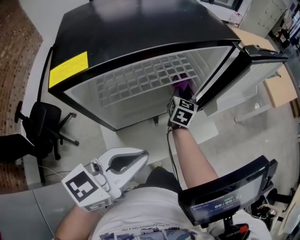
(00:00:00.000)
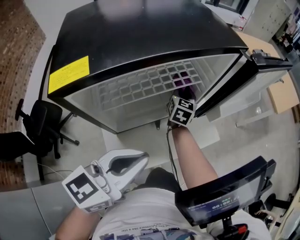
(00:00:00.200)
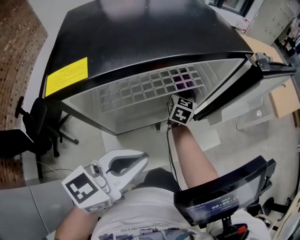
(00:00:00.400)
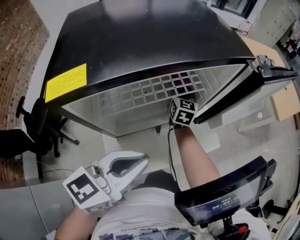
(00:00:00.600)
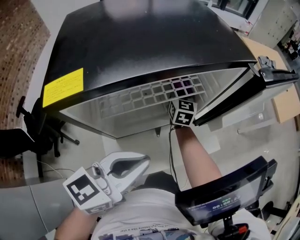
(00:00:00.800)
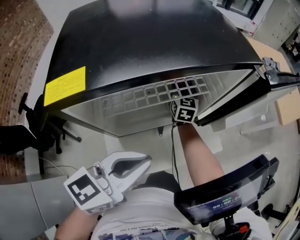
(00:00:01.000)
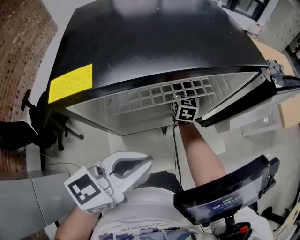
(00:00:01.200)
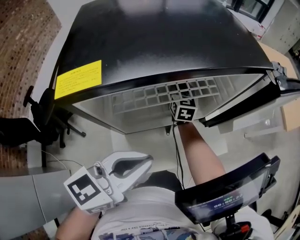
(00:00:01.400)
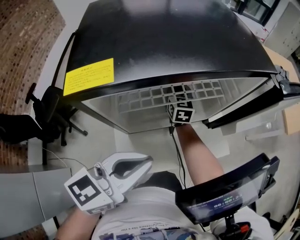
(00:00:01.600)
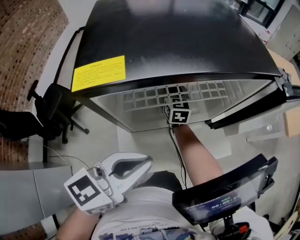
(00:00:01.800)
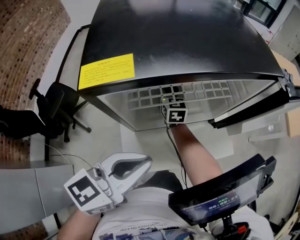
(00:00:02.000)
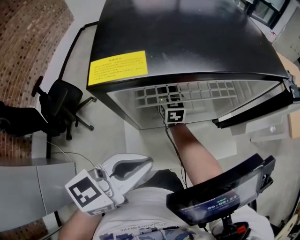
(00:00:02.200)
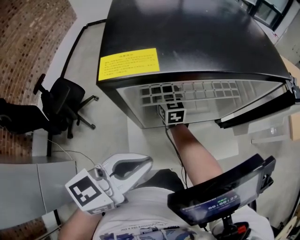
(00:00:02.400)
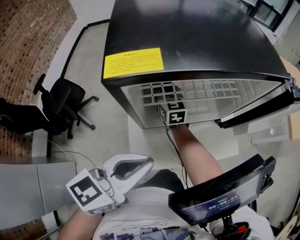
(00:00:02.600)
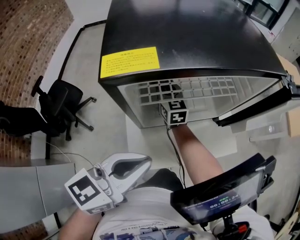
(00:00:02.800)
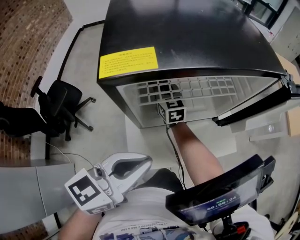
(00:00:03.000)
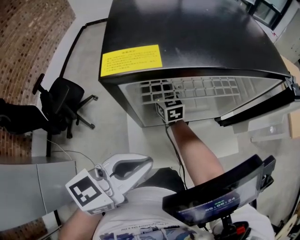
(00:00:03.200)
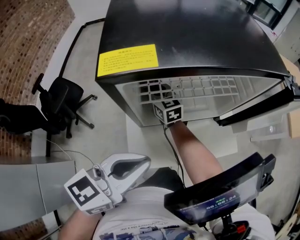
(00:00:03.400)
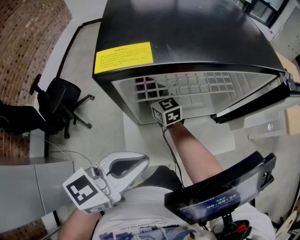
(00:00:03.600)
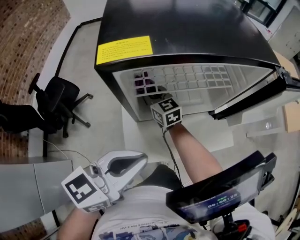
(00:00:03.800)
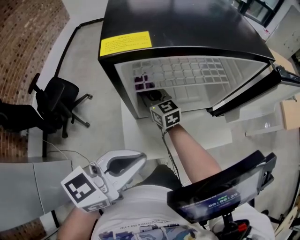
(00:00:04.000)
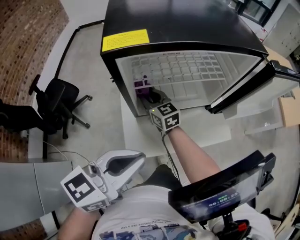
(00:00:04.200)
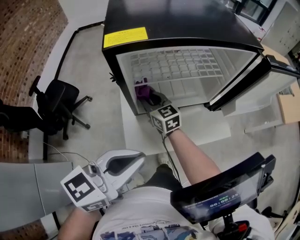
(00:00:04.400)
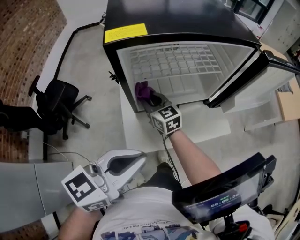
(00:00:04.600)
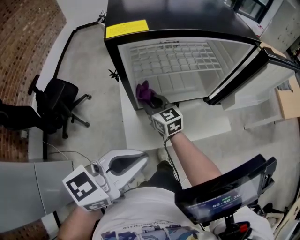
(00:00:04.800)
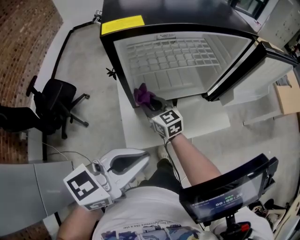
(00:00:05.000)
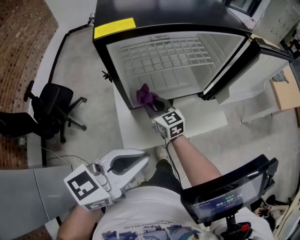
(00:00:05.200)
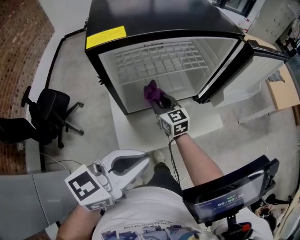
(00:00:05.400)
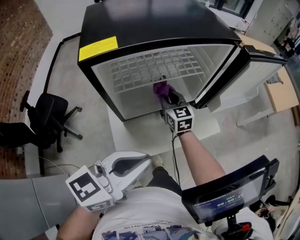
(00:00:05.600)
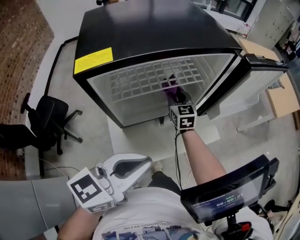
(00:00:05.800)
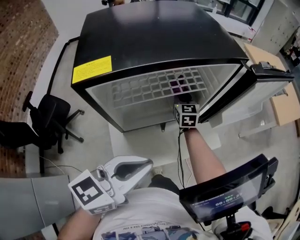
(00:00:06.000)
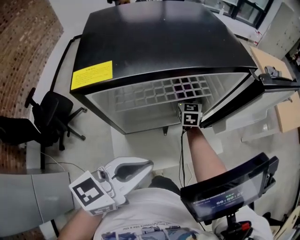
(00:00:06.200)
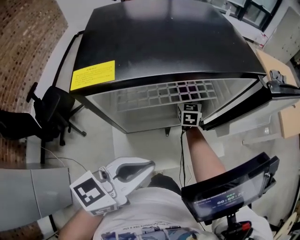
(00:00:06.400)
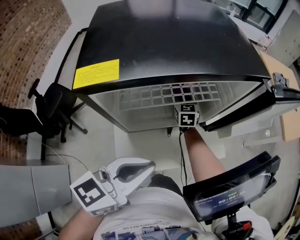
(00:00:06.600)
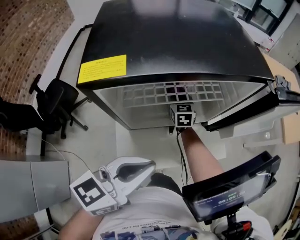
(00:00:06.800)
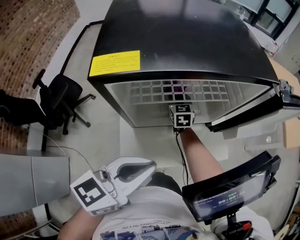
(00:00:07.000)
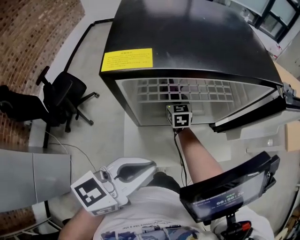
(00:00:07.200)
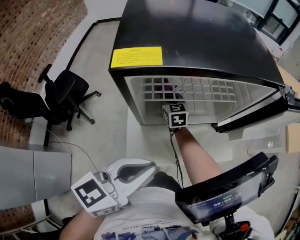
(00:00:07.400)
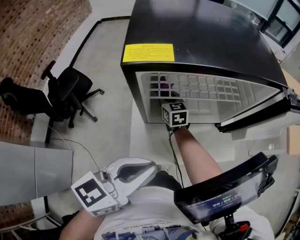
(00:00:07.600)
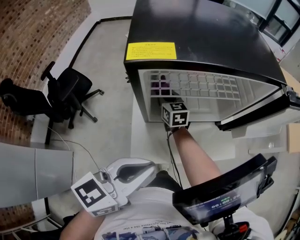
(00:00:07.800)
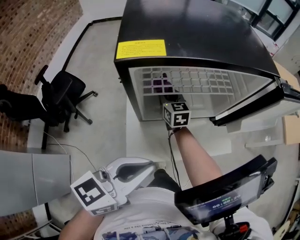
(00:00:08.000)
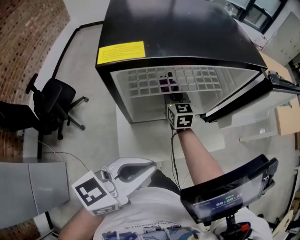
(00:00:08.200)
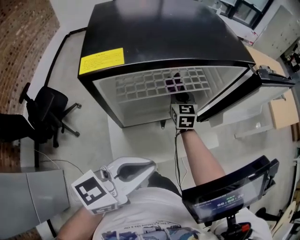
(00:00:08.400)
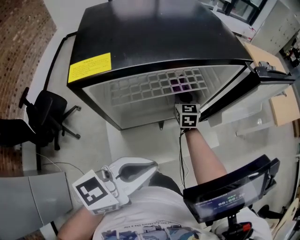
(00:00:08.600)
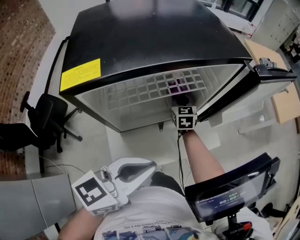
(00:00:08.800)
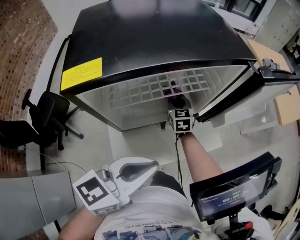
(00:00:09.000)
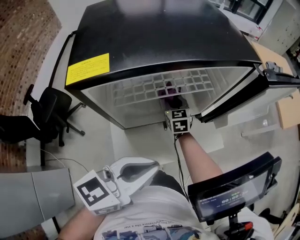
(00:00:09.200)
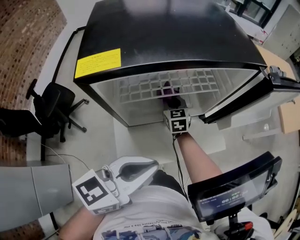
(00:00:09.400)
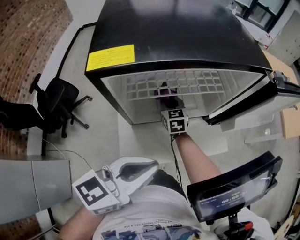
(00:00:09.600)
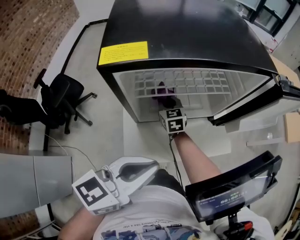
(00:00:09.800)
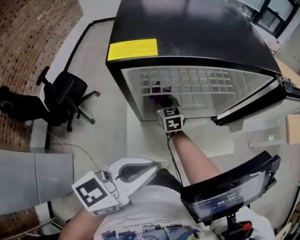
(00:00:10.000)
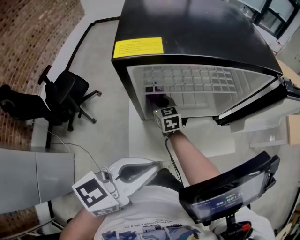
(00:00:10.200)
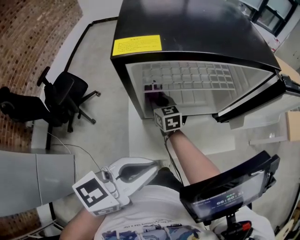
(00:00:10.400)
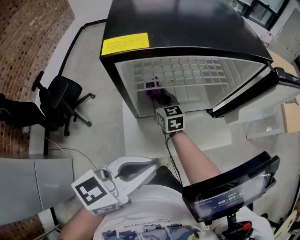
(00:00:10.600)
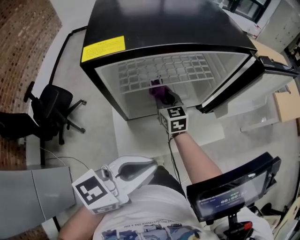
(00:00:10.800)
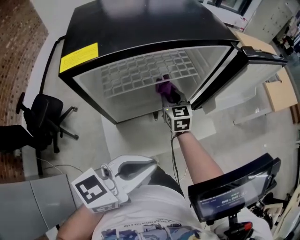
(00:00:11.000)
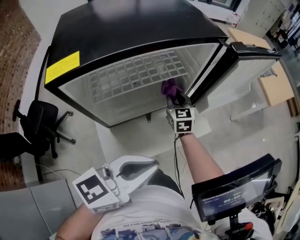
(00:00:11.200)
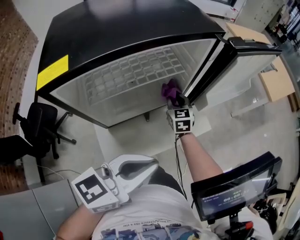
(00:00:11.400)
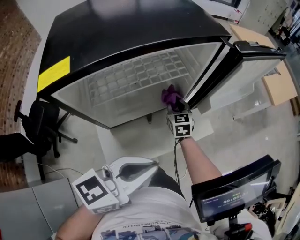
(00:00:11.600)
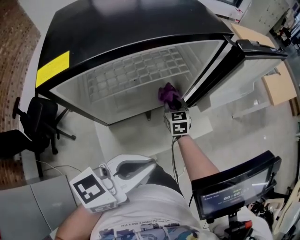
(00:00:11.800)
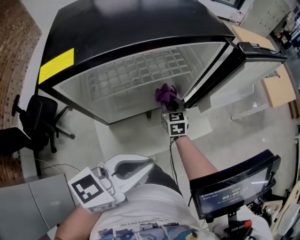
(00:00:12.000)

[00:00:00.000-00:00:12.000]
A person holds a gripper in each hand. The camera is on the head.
00:00:00.000 to 00:00:01.600: The right gripper moves to the left, roughly 15 cm, and swivels roughly 30 degrees.
00:00:01.600 to 00:00:03.000: The right gripper shifts some 15 cm to the left and backward; the left gripper changes place by some 5 cm.
00:00:03.000 to 00:00:04.400: The right gripper is displaced backward by approximately 10 cm, while the left gripper moves backward, roughly 5 cm.
00:00:04.400 to 00:00:06.000: The right gripper is displaced to the right and forward by about 25 cm, and changes its angle by some 40 degrees. Meanwhile the left gripper is displaced to the right and forward by roughly 10 cm.
00:00:06.000 to 00:00:07.600: The right gripper moves to the left and backward, roughly 25 cm, and rotates some 30 degrees. Meanwhile the left gripper shifts approximately 5 cm to the left.
00:00:07.600 to 00:00:09.000: The left gripper goes about 5 cm to the right. Meanwhile the right gripper heads to the right, covering some 20 cm, and turns by roughly 20 degrees.
00:00:09.000 to 00:00:10.400: The right gripper goes about 20 cm to the left and backward, and turns by some 20 degrees; the left gripper moves backward and to the left, approximately 10 cm.
00:00:10.400 to 00:00:12.000: The right gripper reaches about 5 cm upward, then returns, and swivels approximately 30 degrees, while the left gripper moves roughly 10 cm.

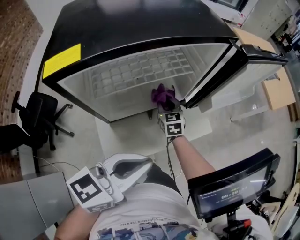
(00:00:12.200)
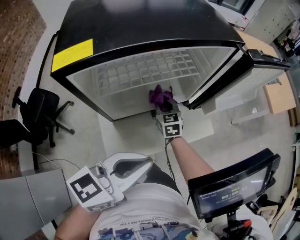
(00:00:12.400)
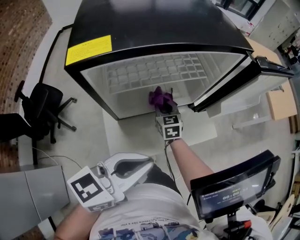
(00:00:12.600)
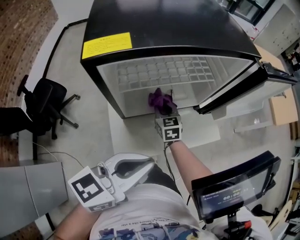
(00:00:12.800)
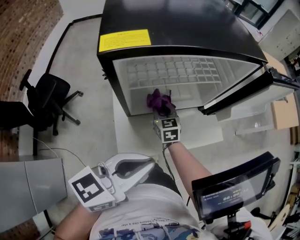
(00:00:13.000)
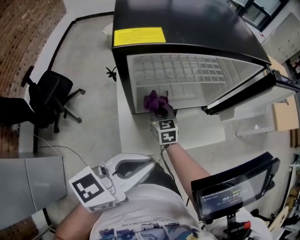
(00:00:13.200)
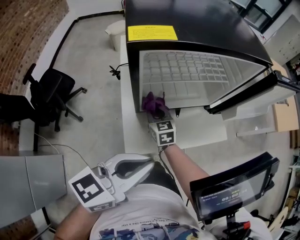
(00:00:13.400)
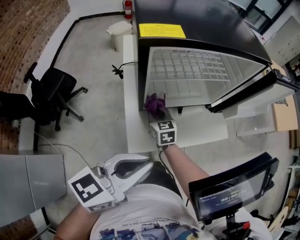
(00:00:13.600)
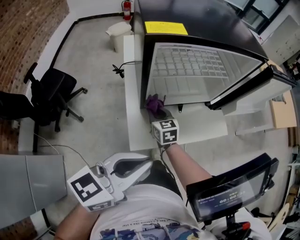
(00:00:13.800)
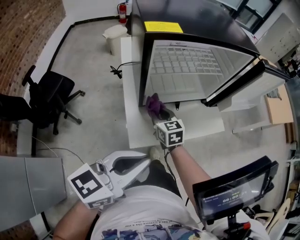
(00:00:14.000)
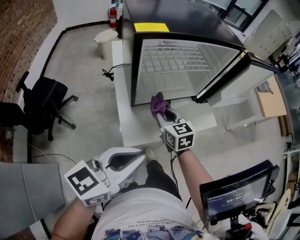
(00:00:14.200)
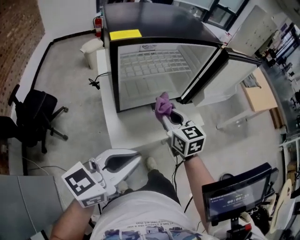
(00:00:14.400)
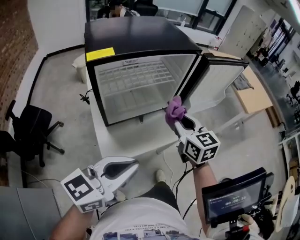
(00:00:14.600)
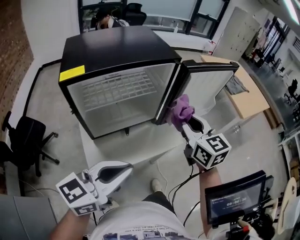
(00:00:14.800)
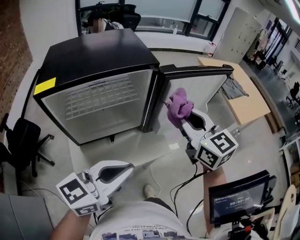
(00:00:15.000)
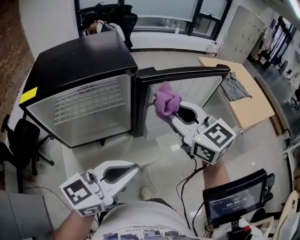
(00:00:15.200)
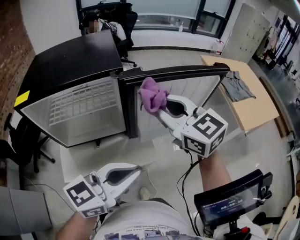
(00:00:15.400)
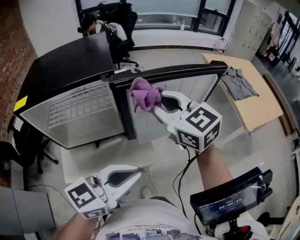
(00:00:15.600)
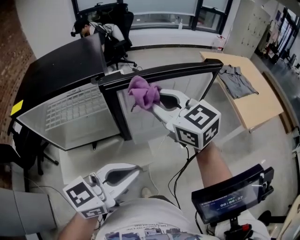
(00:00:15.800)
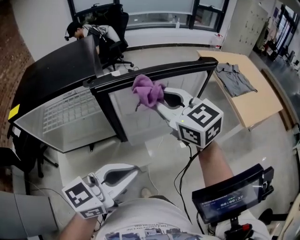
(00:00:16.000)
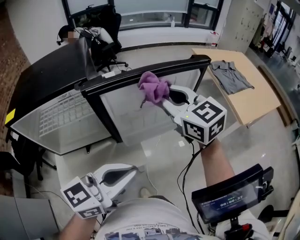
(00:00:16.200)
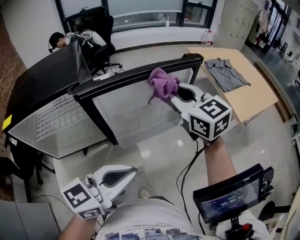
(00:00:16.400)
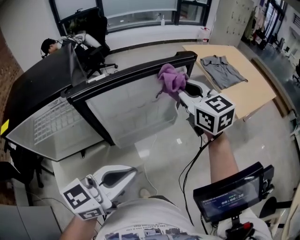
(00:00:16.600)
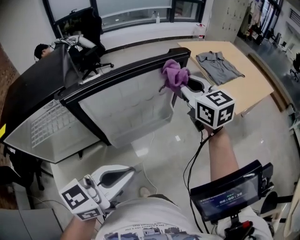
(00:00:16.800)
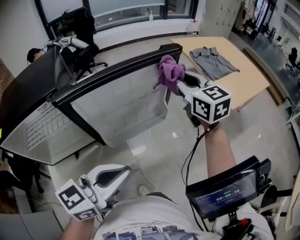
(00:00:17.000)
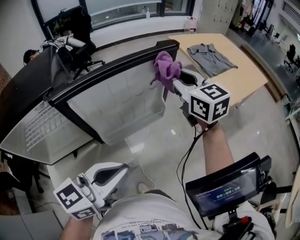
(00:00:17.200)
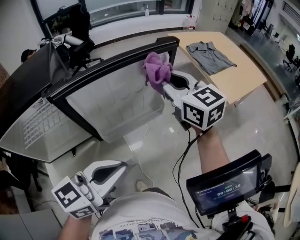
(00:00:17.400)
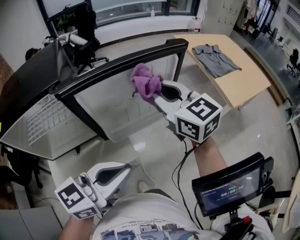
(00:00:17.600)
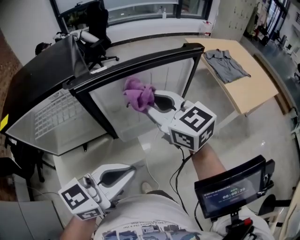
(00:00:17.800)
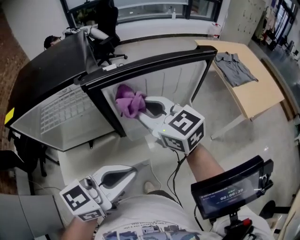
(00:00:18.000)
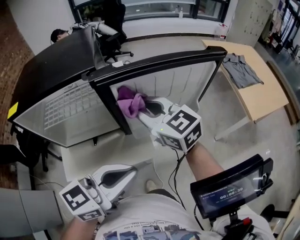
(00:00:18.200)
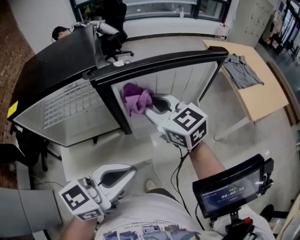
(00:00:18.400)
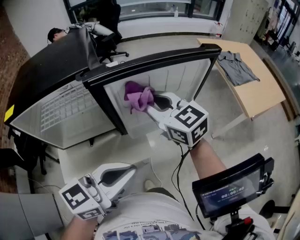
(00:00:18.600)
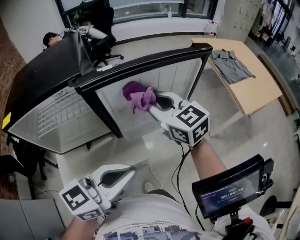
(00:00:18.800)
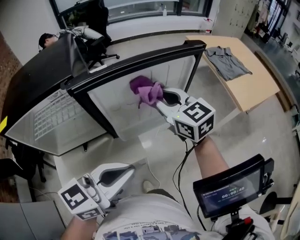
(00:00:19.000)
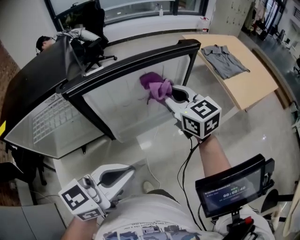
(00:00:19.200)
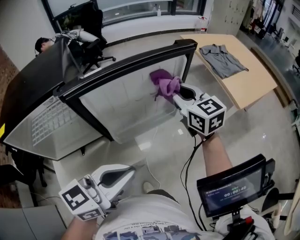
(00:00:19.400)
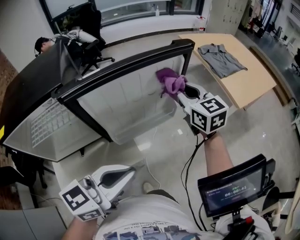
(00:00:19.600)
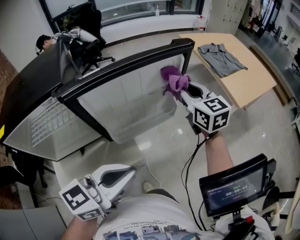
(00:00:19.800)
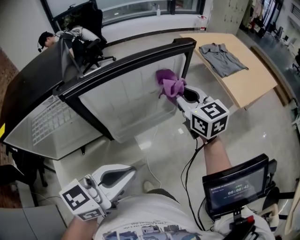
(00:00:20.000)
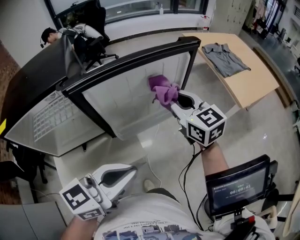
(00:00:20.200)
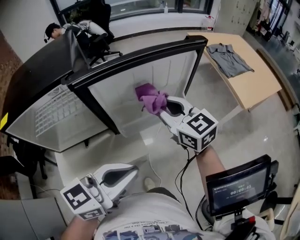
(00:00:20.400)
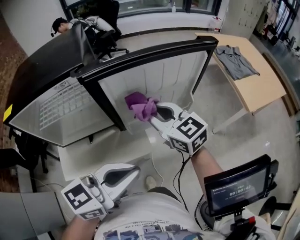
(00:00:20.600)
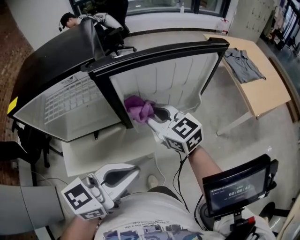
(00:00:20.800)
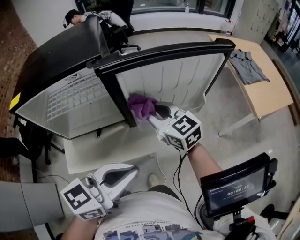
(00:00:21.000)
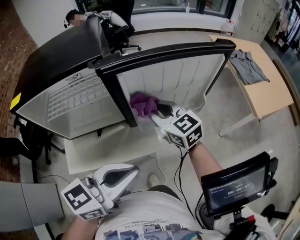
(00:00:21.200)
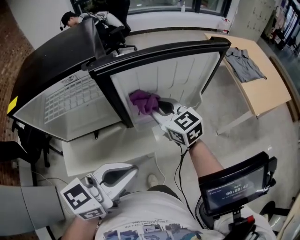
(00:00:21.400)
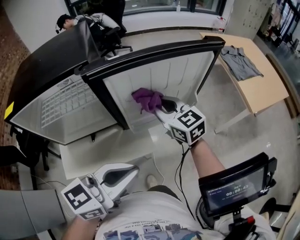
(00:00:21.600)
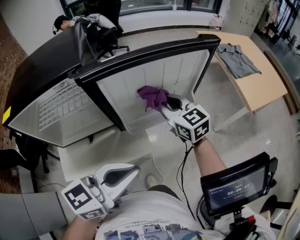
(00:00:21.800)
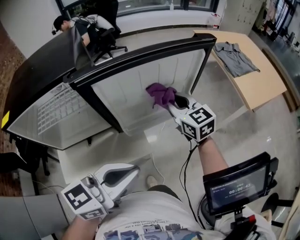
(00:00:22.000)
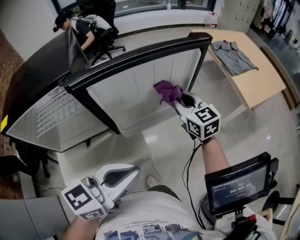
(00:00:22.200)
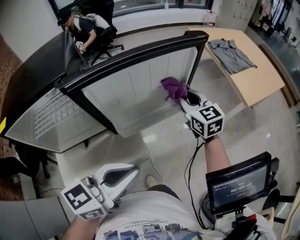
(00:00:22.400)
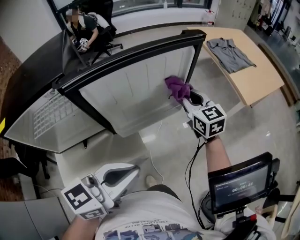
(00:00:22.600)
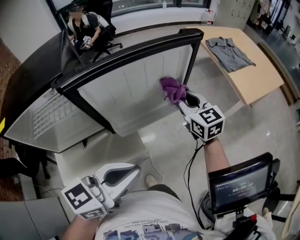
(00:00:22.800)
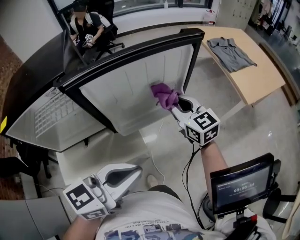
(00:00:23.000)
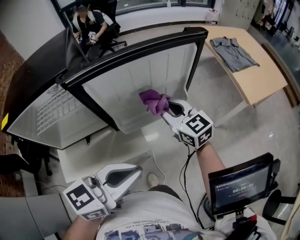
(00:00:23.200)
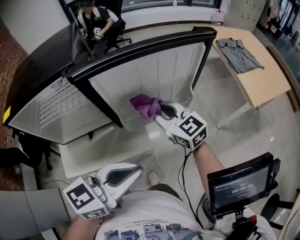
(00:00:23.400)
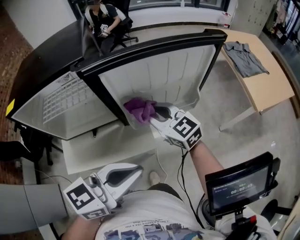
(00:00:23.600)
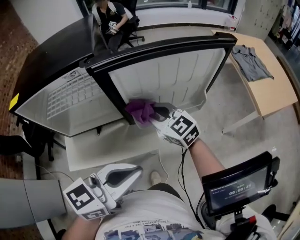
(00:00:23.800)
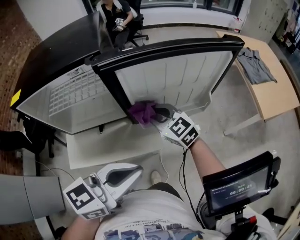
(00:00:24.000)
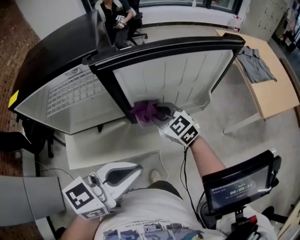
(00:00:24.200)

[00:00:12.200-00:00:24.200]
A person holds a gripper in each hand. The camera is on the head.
00:00:12.200 to 00:00:13.800: The left gripper heads to the left and backward, covering some 15 cm, while the right gripper is displaced to the left and backward by approximately 20 cm.
00:00:13.800 to 00:00:15.200: The right gripper is displaced to the right and upward by roughly 50 cm, and swivels roughly 30 degrees. The left gripper is displaced to the right and forward by roughly 30 cm.
00:00:15.200 to 00:00:16.600: The left gripper goes about 10 cm to the right and forward, while the right gripper goes some 20 cm to the right and forward.
00:00:16.600 to 00:00:18.200: The right gripper travels to the left and backward by roughly 20 cm, and swivels some 30 degrees. Meanwhile the left gripper shifts approximately 5 cm to the left.
00:00:18.200 to 00:00:19.800: The left gripper heads to the right, covering roughly 5 cm. The right gripper travels to the right and forward by some 25 cm, and rotates some 30 degrees.
00:00:19.800 to 00:00:21.200: The left gripper is displaced to the left by about 5 cm. Meanwhile the right gripper travels to the left and backward by about 25 cm, and turns by about 30 degrees.
00:00:21.200 to 00:00:22.600: The right gripper travels to the right and forward by about 25 cm, and changes its angle by approximately 30 degrees, while the left gripper goes about 5 cm to the right.
00:00:22.600 to 00:00:24.200: The left gripper ends up approximately 5 cm from where it was; the right gripper is displaced to the left by approximately 25 cm, and swivels some 40 degrees.
